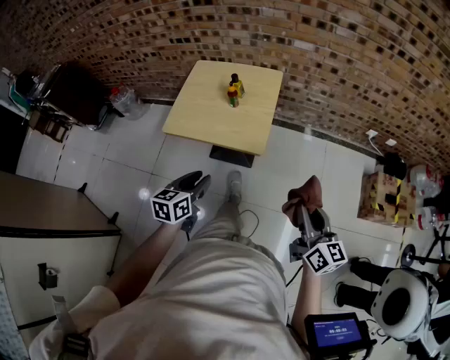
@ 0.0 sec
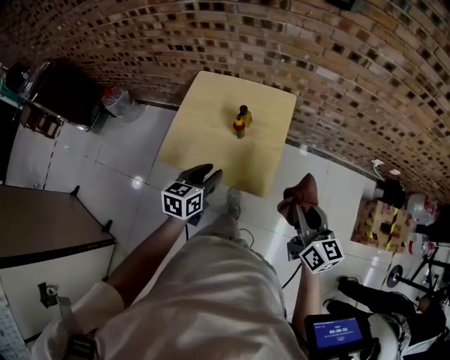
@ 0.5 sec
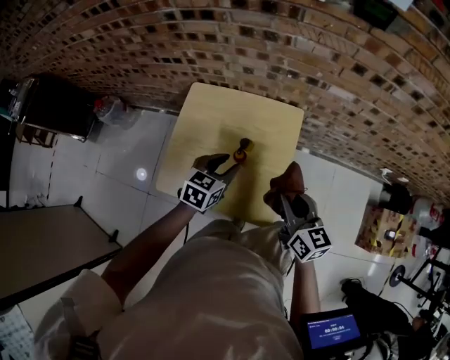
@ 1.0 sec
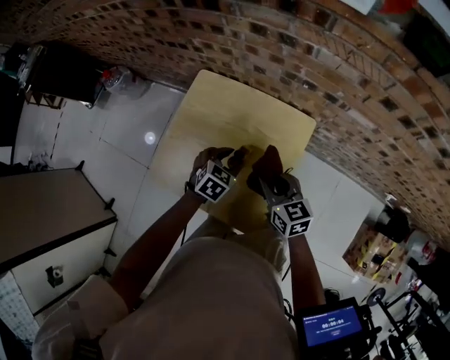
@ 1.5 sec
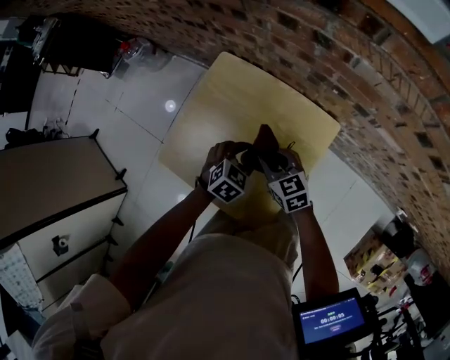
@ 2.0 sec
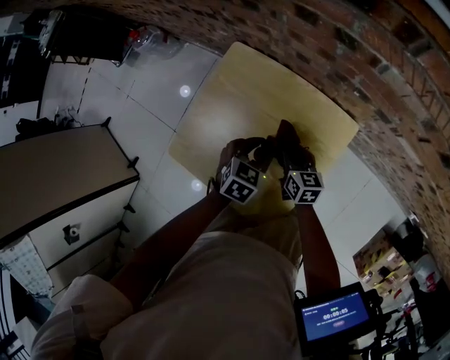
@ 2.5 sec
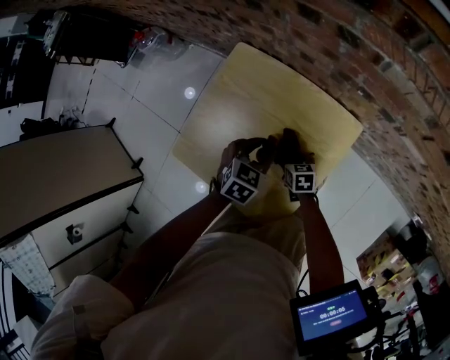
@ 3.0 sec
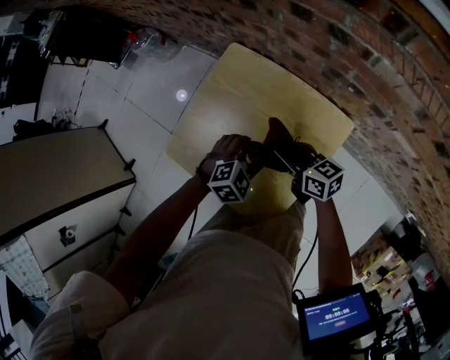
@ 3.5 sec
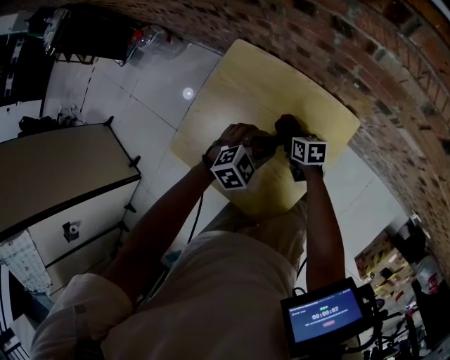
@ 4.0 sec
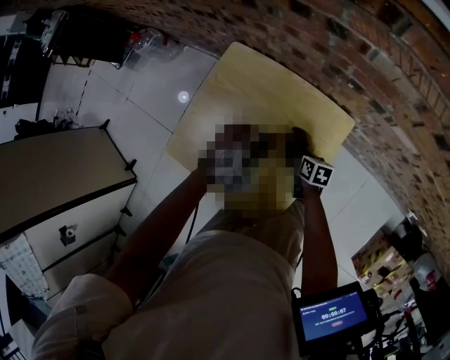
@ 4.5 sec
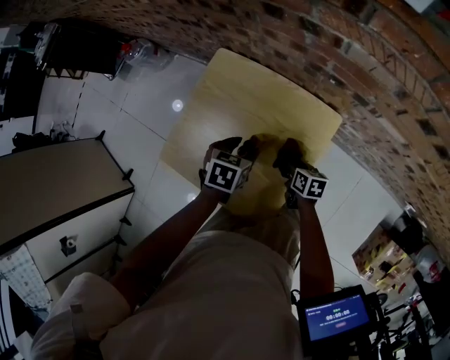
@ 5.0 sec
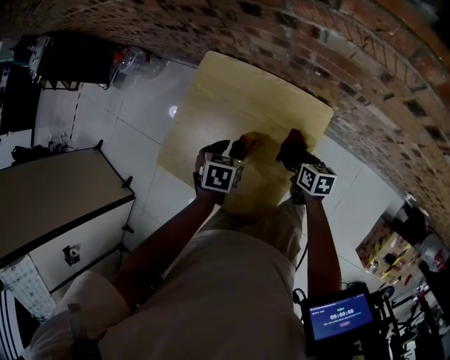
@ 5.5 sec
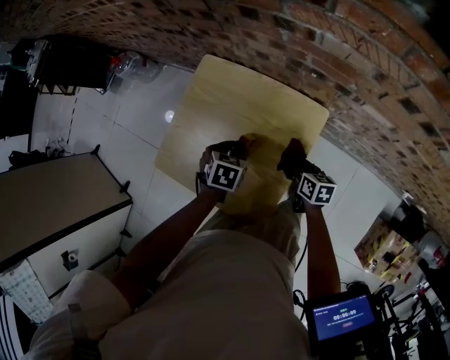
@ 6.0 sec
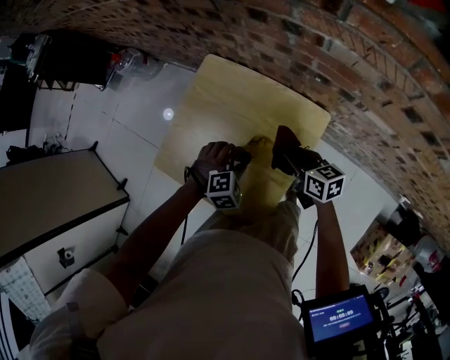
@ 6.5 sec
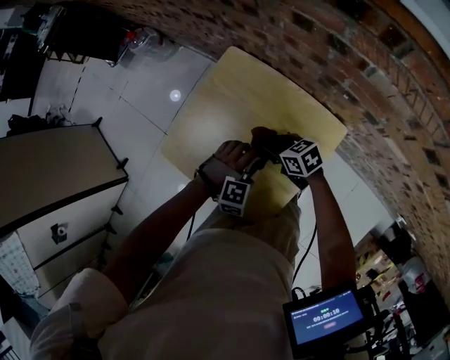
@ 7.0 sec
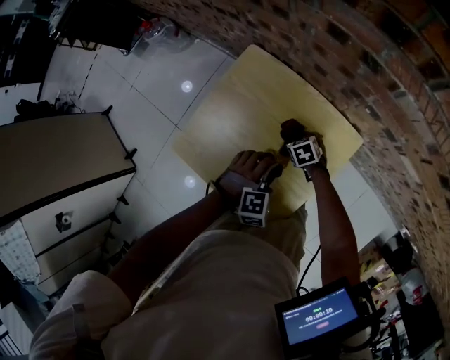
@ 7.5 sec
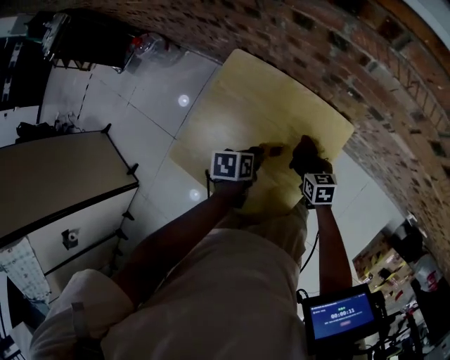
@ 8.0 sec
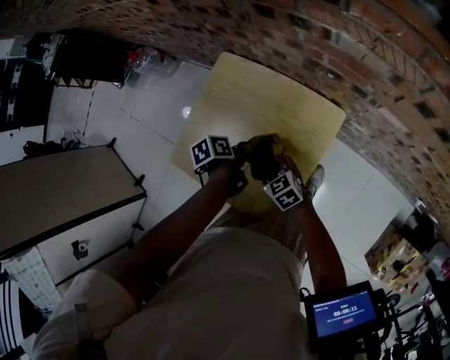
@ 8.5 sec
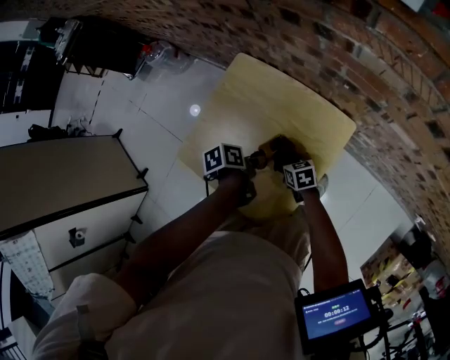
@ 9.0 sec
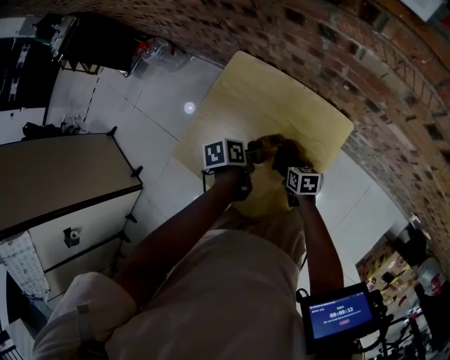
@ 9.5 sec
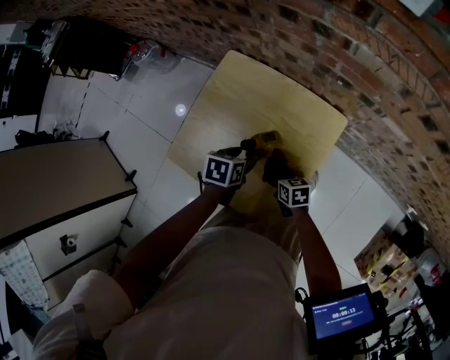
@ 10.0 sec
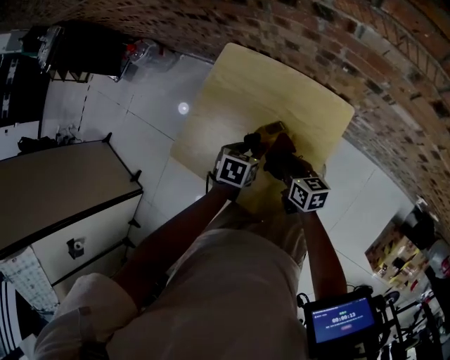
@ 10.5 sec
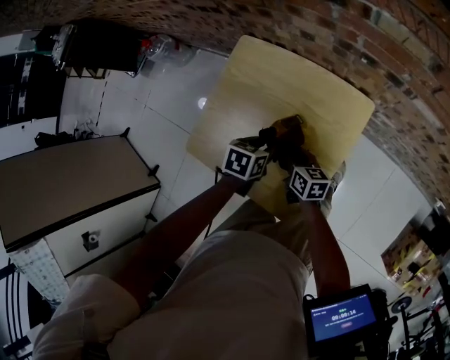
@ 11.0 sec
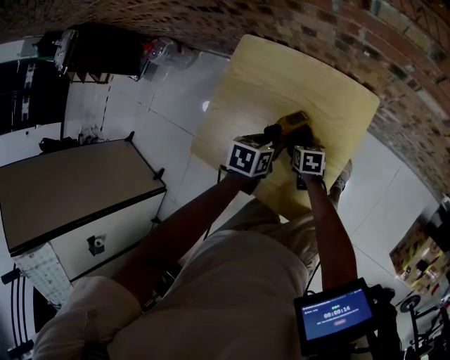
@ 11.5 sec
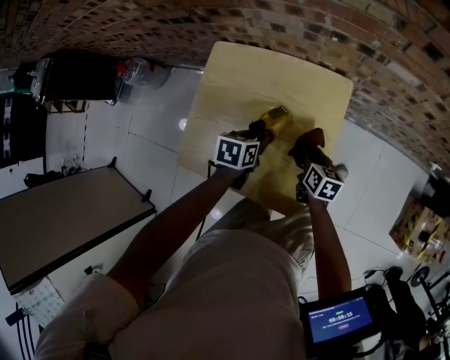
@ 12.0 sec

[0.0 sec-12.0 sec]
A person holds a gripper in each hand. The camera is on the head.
0.0 sec to 2.0 sec: The two grippers travel together, about 60 cm. The left gripper turns by some 40 degrees, while the right gripper rotates about 50 degrees.
2.0 sec to 4.0 sec: The right gripper swings up and down, some 20 cm each way, with 2 reversals, and swivels roughly 30 degrees. Meanwhile the left gripper rotates some 20 degrees.
4.0 sec to 6.0 sec: The right gripper is displaced to the right, backward and upward by about 15 cm, while the left gripper rolls counterclockwise, seen from behind, by about 40 degrees.
6.0 sec to 8.0 sec: The left gripper changes its angle by roughly 30 degrees. The right gripper moves up and down over some 15 cm, changing direction 2 times, and swivels some 20 degrees.
8.0 sec to 10.0 sec: The right gripper shifts roughly 10 cm to the left and backward.
10.0 sec to 12.0 sec: The right gripper goes up and down, approximately 15 cm each way, reversing 2 times, and swivels roughly 40 degrees. The left gripper closes its fingers.

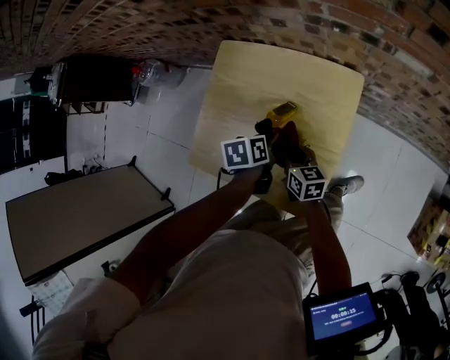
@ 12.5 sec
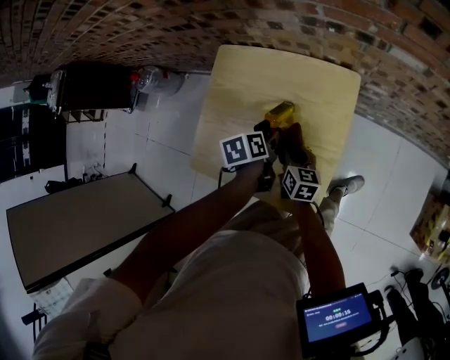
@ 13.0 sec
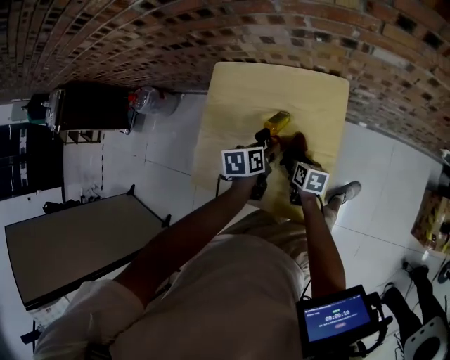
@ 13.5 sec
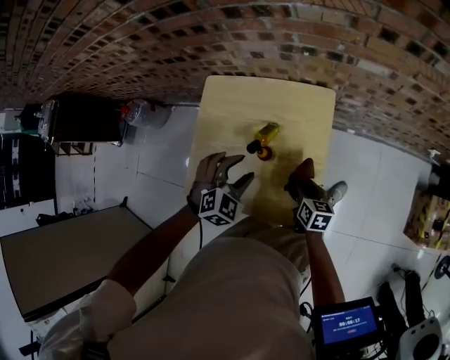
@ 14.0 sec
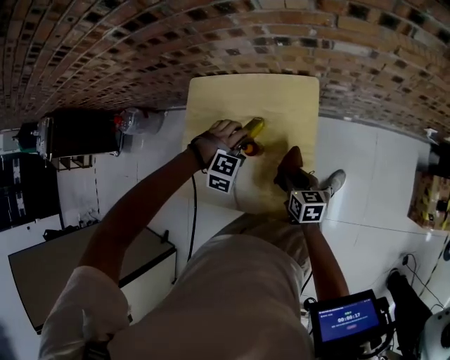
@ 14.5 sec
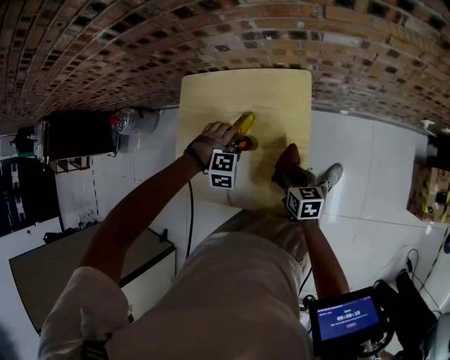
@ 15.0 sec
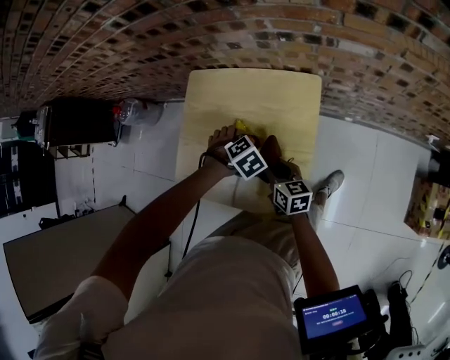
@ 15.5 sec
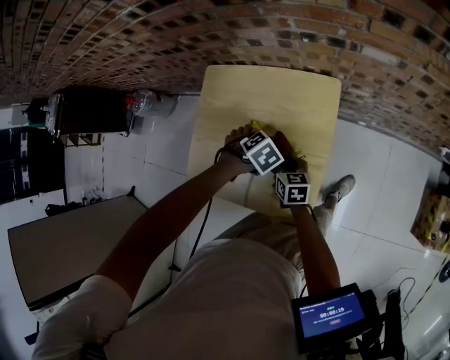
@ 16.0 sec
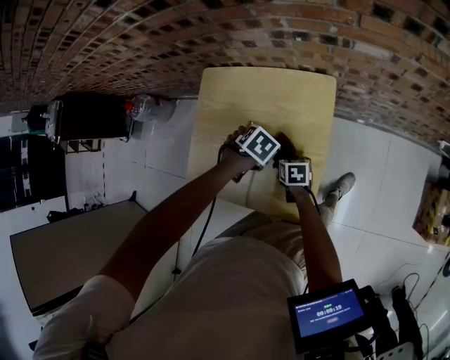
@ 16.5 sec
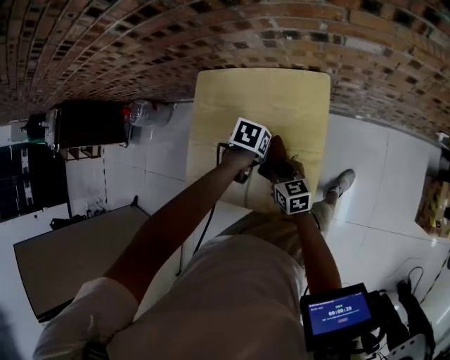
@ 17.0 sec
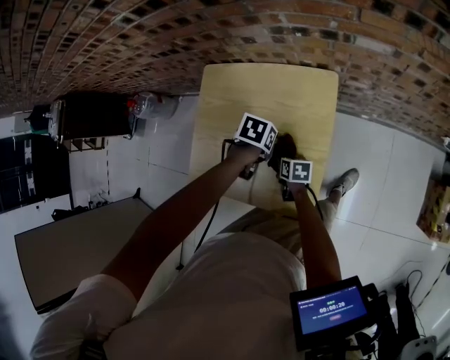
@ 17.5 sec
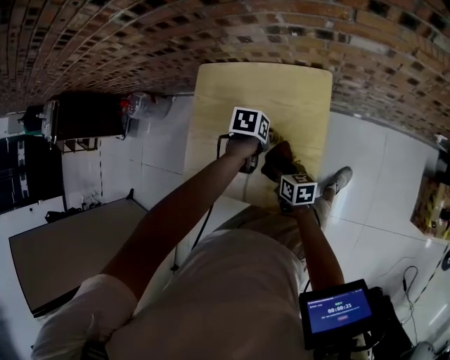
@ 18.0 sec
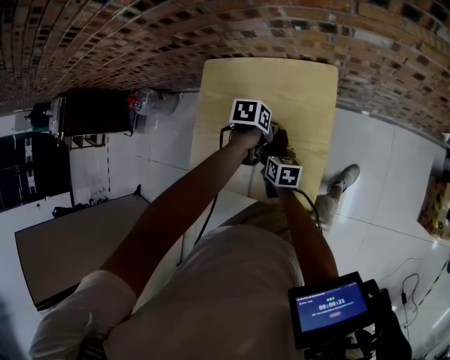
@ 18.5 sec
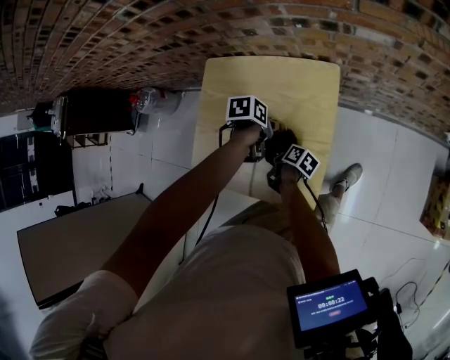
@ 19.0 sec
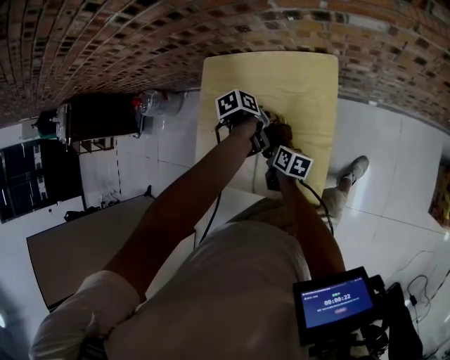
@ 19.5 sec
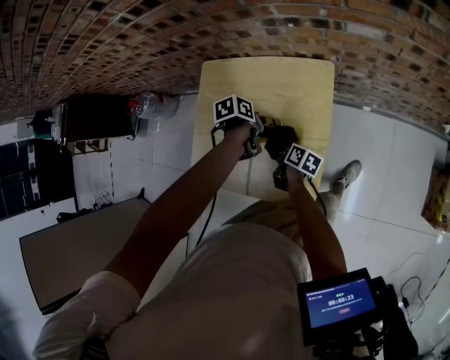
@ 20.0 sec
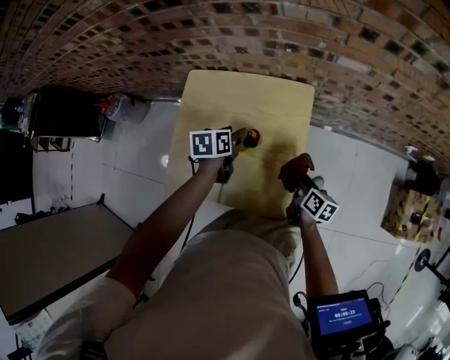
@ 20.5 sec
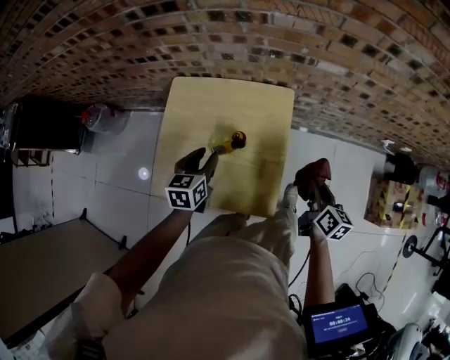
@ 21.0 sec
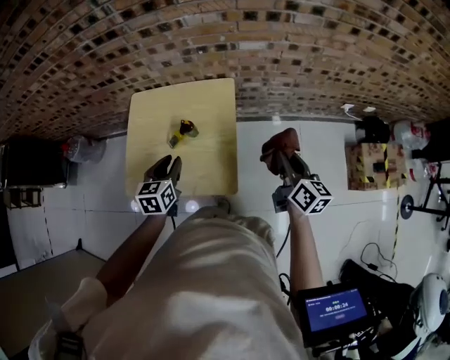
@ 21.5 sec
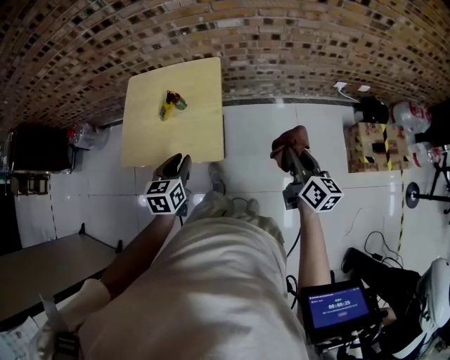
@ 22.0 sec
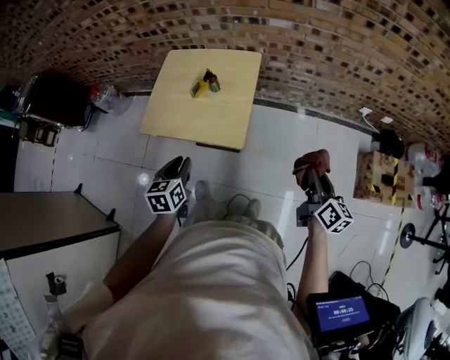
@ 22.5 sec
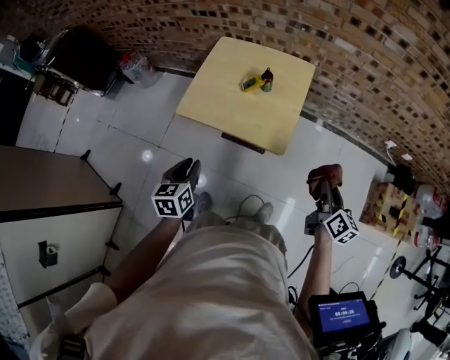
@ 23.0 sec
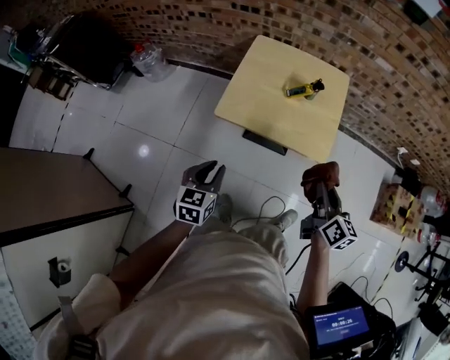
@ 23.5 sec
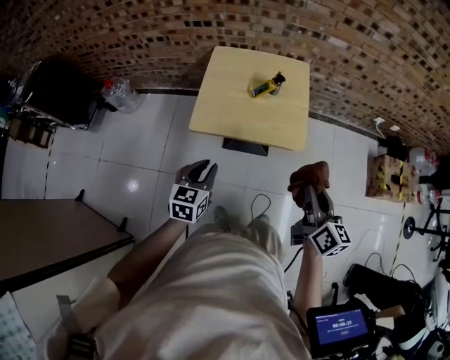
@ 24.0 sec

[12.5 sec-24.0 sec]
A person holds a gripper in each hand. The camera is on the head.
12.5 sec to 14.5 sec: The right gripper moves some 5 cm downward and comes back, while the left gripper reaches approximately 10 cm upward, then returns, twists approximately 140 degrees clockwise, seen from behind, and opens.
14.5 sec to 16.5 sec: The right gripper goes some 10 cm downward, and changes its angle by roughly 20 degrees. The left gripper rolls counterclockwise, seen from behind, by about 80 degrees, and closes.
16.5 sec to 18.5 sec: The left gripper rotates roughly 40 degrees, while the right gripper goes up and down, some 10 cm each way, reversing 2 times, and turns by some 20 degrees.
18.5 sec to 20.0 sec: The right gripper moves approximately 5 cm, and rotates some 30 degrees. The left gripper swivels approximately 20 degrees.
20.0 sec to 22.0 sec: The left gripper shifts roughly 40 cm backward, upward and to the right, and angles its fingers upward, by about 30 degrees. Meanwhile the right gripper is displaced to the right, upward and backward by some 60 cm, and changes its angle by roughly 50 degrees.
22.0 sec to 24.0 sec: The two grippers go about 35 cm to the left.

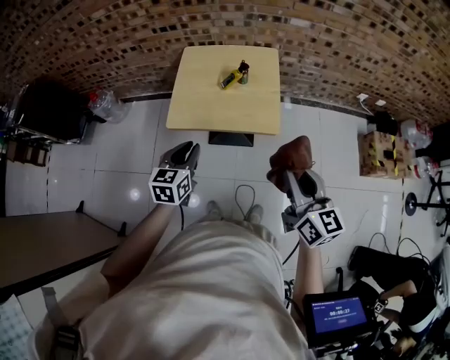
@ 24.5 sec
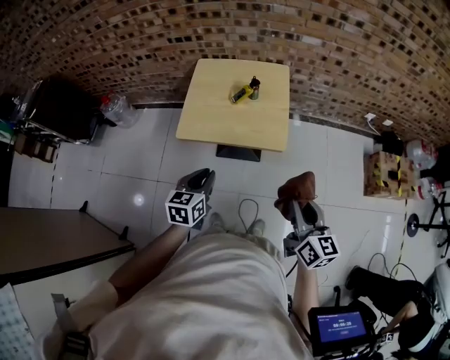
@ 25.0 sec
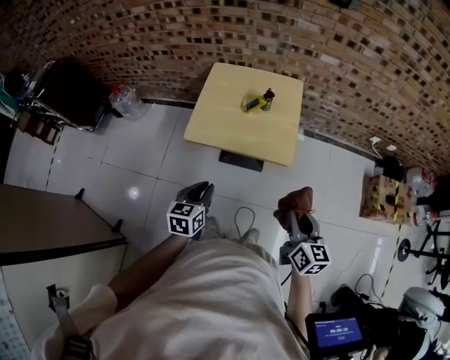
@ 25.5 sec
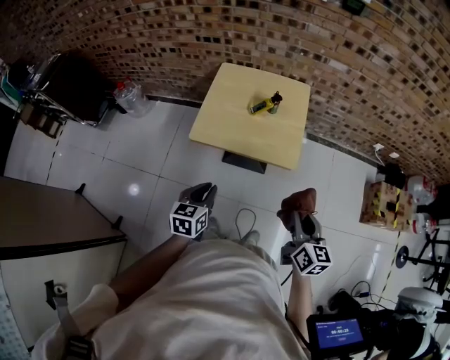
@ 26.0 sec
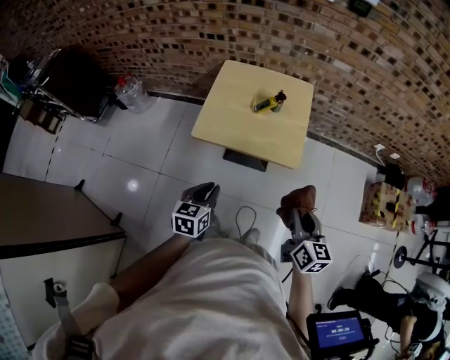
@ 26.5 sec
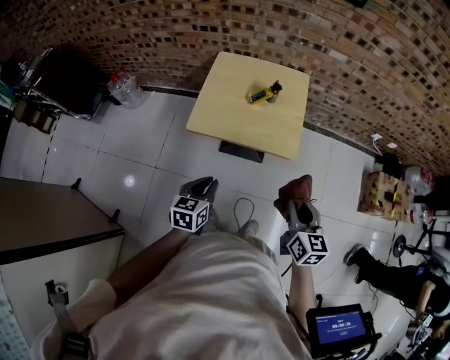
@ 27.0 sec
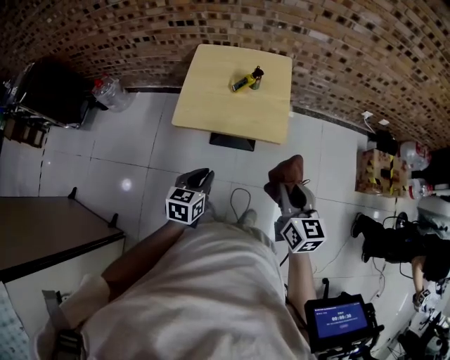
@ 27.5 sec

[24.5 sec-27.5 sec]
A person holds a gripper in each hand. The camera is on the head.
24.5 sec to 26.0 sec: The right gripper travels downward by approximately 10 cm. Meanwhile the left gripper travels backward by about 5 cm.
26.0 sec to 27.5 sec: The grippers make only small movements.
